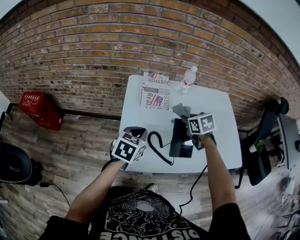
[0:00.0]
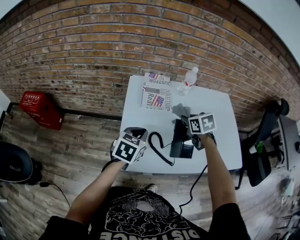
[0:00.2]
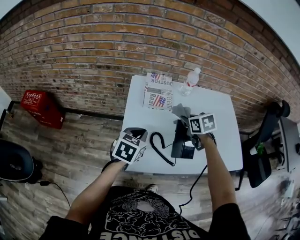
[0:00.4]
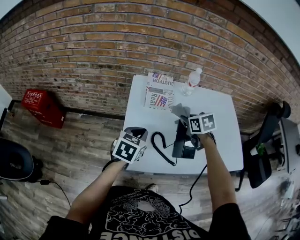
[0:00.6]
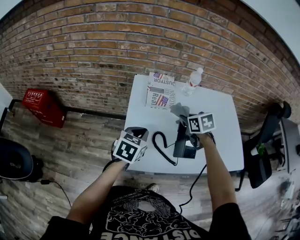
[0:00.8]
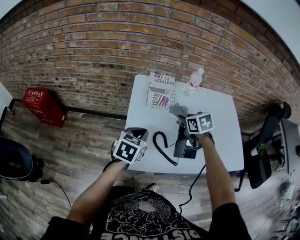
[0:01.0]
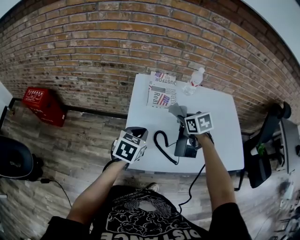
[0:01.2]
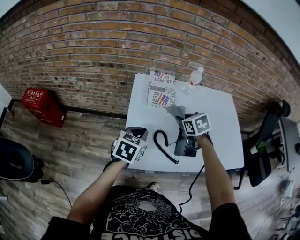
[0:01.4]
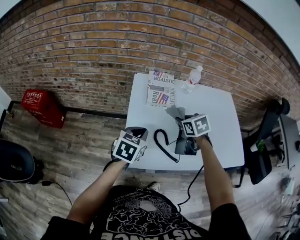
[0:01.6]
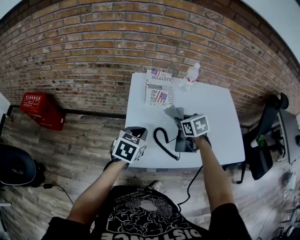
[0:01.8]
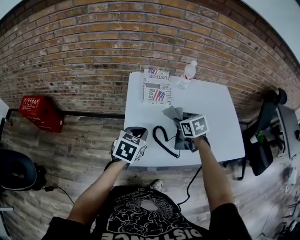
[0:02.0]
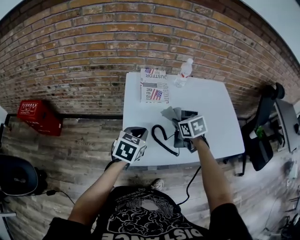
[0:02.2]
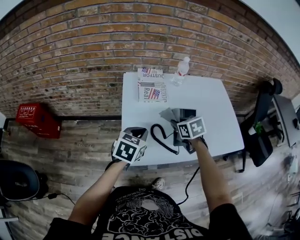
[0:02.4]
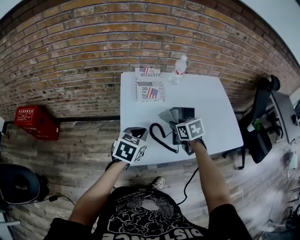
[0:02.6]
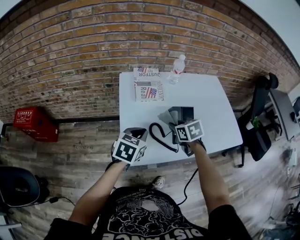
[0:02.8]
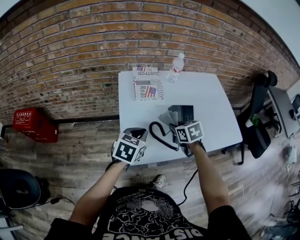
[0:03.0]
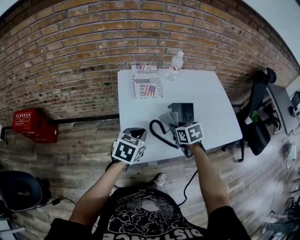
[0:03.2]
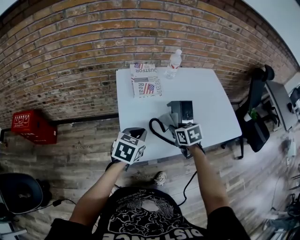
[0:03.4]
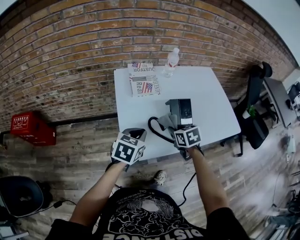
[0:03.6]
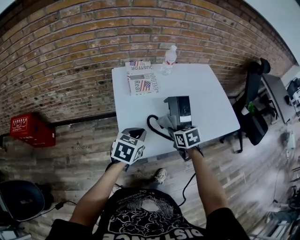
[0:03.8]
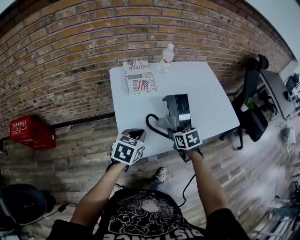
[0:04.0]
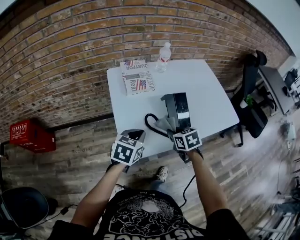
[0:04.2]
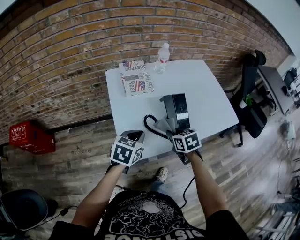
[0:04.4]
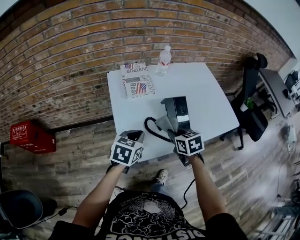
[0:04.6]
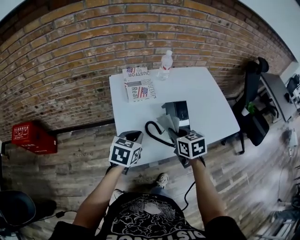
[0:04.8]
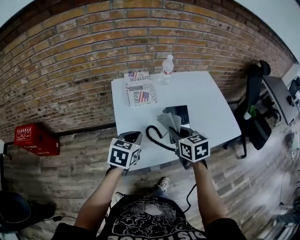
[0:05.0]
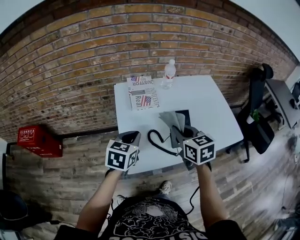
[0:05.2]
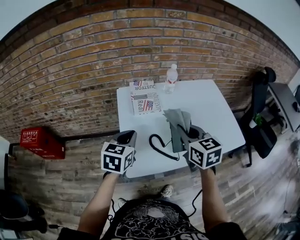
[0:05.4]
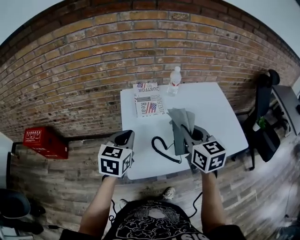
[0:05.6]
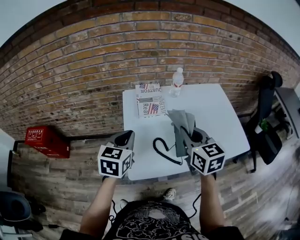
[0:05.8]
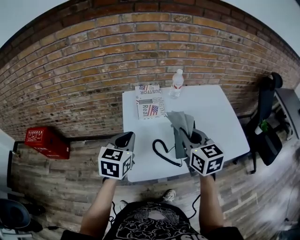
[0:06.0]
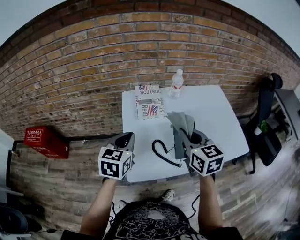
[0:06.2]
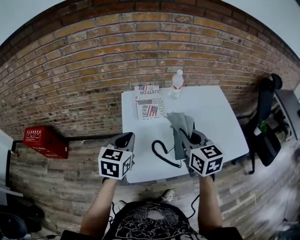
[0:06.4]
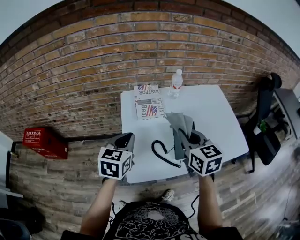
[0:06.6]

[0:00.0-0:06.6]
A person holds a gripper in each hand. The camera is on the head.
0:00.0 to 0:01.6: The right gripper moves to the left, some 5 cm.
0:01.6 to 0:03.2: The right gripper is displaced backward by some 10 cm.
0:03.2 to 0:05.0: The right gripper heads upward, covering roughly 10 cm.
0:05.0 to 0:06.6: Both grippers move upward, approximately 10 cm.

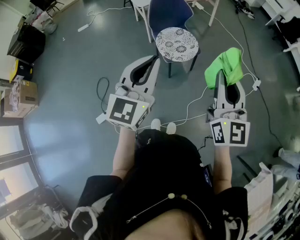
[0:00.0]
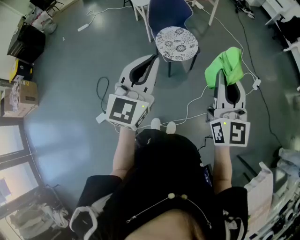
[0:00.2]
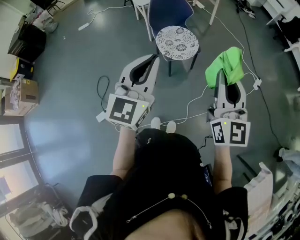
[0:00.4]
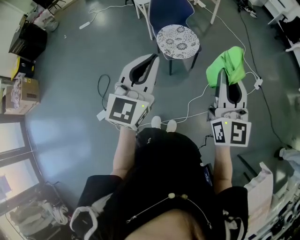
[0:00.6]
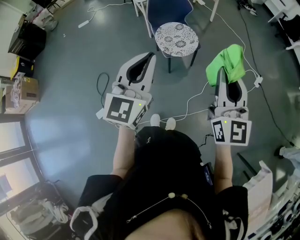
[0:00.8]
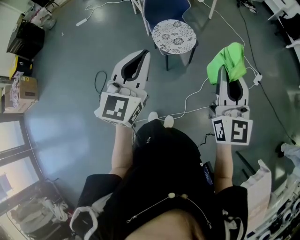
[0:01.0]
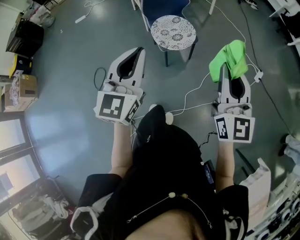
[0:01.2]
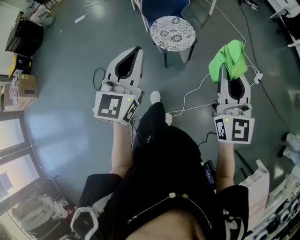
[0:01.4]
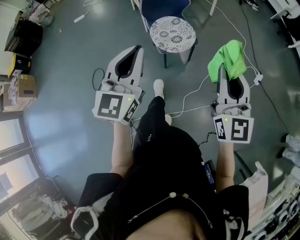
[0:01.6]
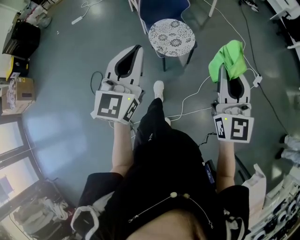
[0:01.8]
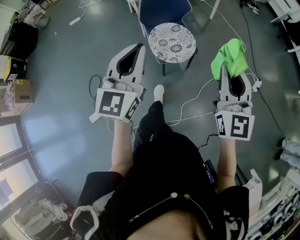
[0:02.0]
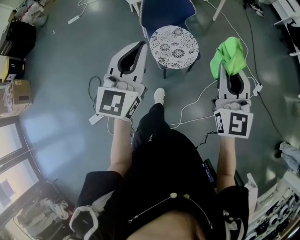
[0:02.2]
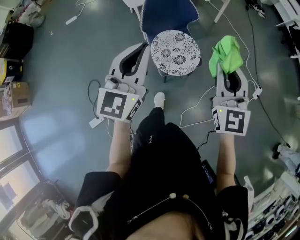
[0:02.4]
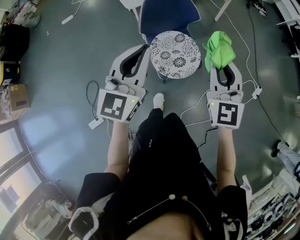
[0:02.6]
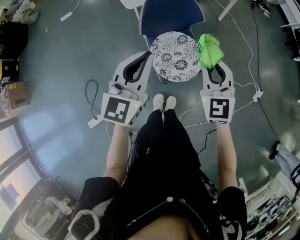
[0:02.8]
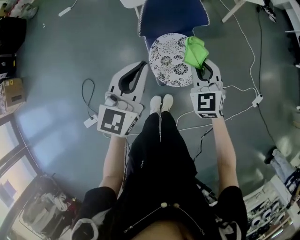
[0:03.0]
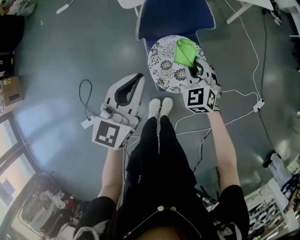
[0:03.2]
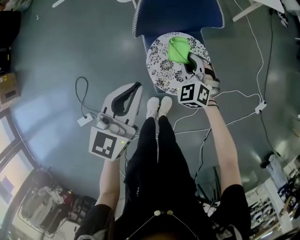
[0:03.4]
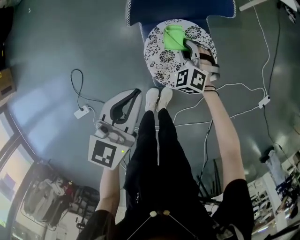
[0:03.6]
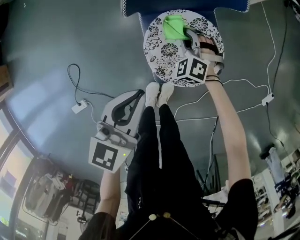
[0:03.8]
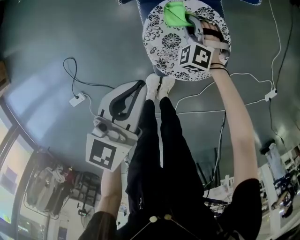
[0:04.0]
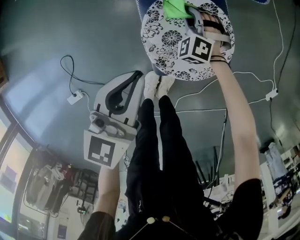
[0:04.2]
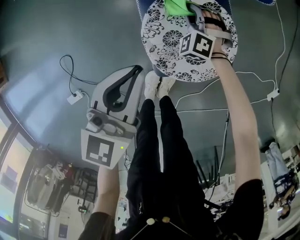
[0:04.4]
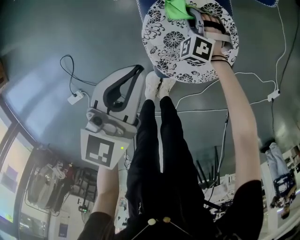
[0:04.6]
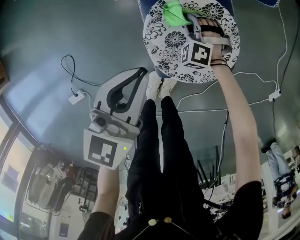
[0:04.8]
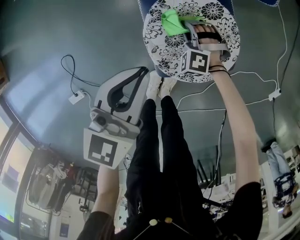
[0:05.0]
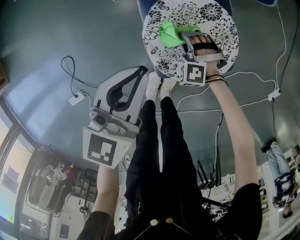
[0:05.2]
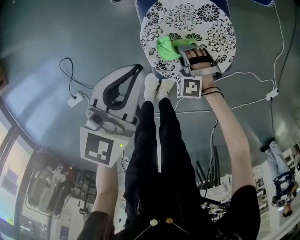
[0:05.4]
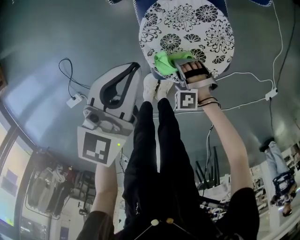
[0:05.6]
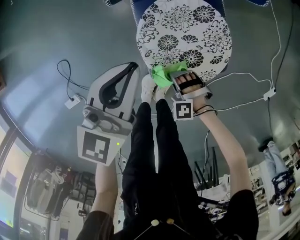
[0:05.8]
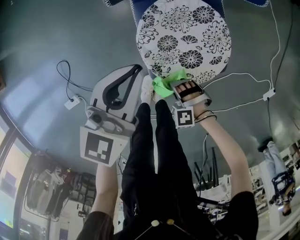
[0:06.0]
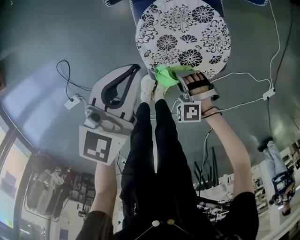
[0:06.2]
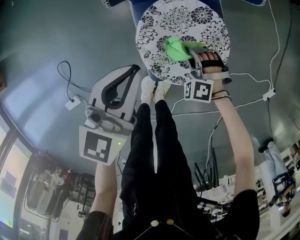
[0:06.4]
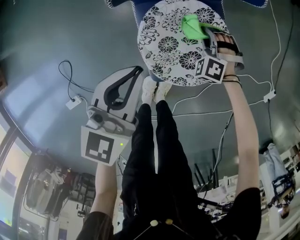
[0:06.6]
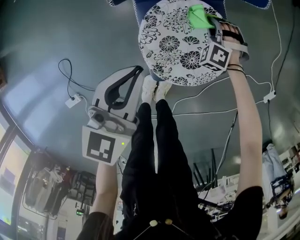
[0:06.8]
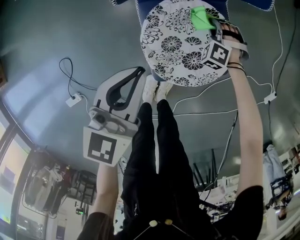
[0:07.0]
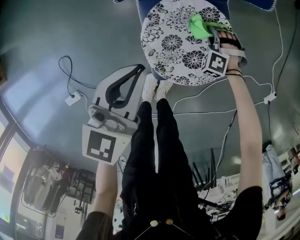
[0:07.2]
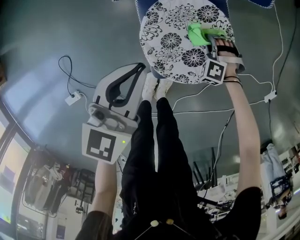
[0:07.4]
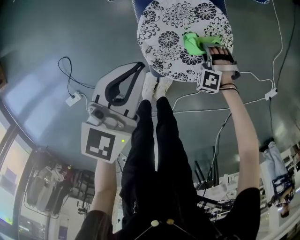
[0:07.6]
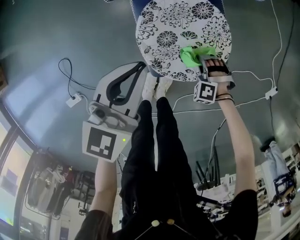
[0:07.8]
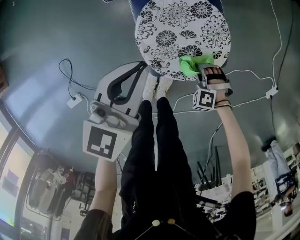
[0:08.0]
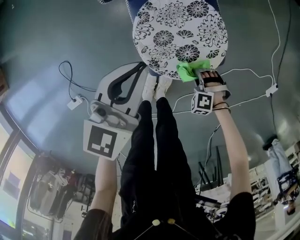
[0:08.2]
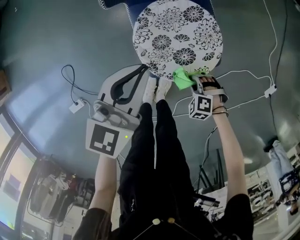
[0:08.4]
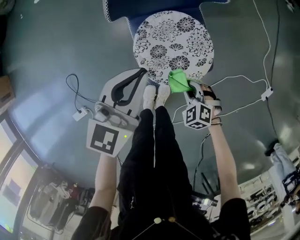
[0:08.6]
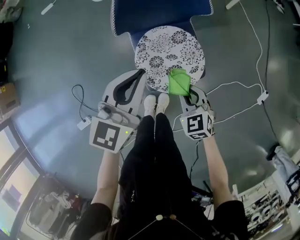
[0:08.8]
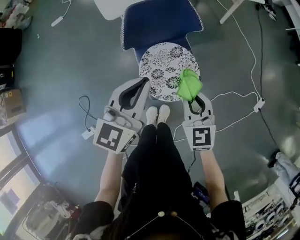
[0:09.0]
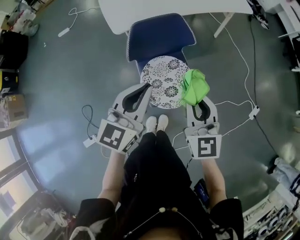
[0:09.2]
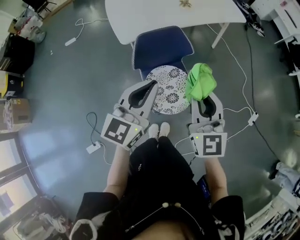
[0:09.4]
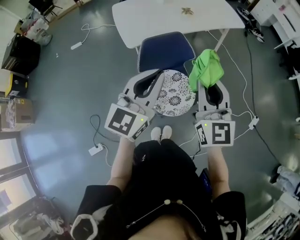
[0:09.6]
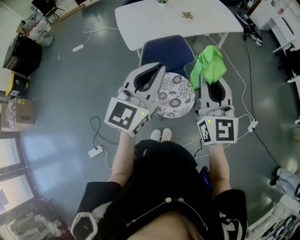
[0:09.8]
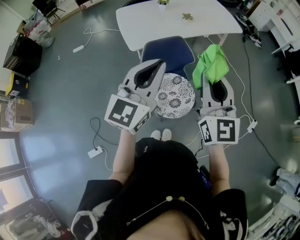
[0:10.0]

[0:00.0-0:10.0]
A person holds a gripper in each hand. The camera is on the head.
0:00.0 to 0:01.4: The right gripper goes some 5 cm to the right.
0:01.4 to 0:02.8: Both grippers travel together forward, approximately 40 cm. The right gripper swivels some 30 degrees.
0:02.8 to 0:04.2: The left gripper travels downward by some 30 cm; the right gripper heads downward and forward, covering some 50 cm, and rotates around the line of its fingers by roughly 40 degrees, counterclockwise from behind.
0:04.2 to 0:05.8: The right gripper is displaced backward by roughly 25 cm, and swivels approximately 30 degrees.
0:05.8 to 0:07.2: The right gripper ends up some 25 cm from where it was, and rotates some 20 degrees.
0:07.2 to 0:08.6: The left gripper is displaced upward by some 10 cm, while the right gripper ends up roughly 25 cm from where it was, and changes its angle by roughly 40 degrees.
0:08.6 to 0:10.0: The right gripper heads upward, covering approximately 70 cm, and points its fingers approximately 70 degrees further upward. The left gripper is displaced upward by about 40 cm, and swivels roughly 20 degrees.

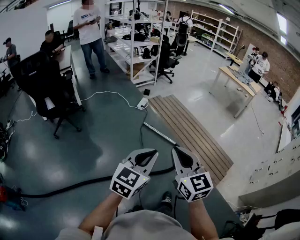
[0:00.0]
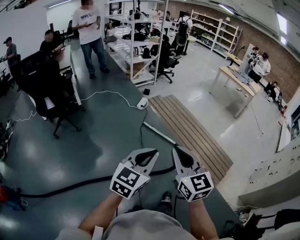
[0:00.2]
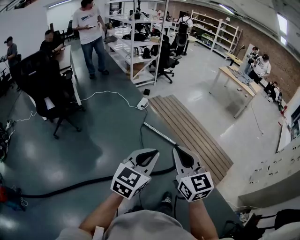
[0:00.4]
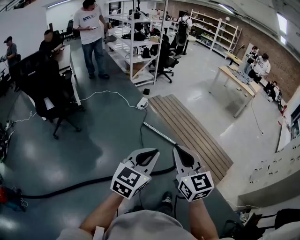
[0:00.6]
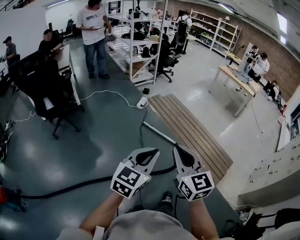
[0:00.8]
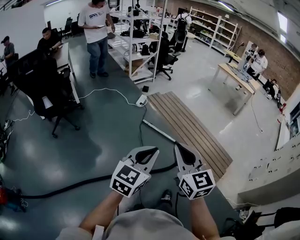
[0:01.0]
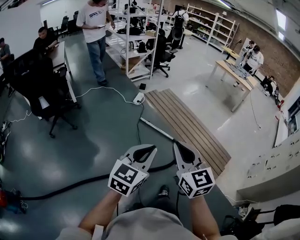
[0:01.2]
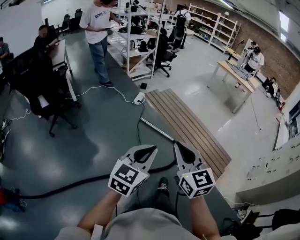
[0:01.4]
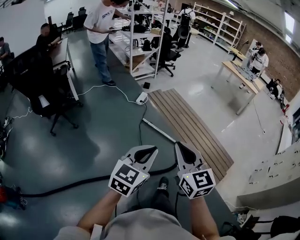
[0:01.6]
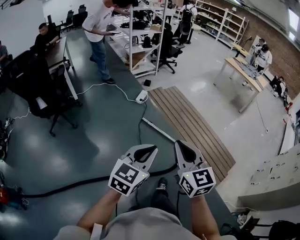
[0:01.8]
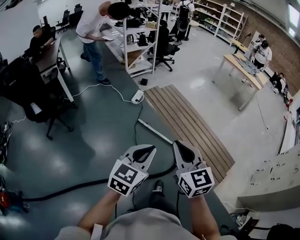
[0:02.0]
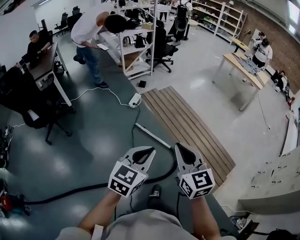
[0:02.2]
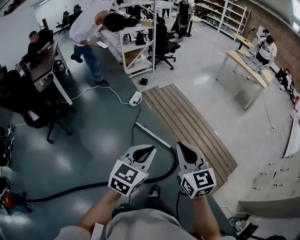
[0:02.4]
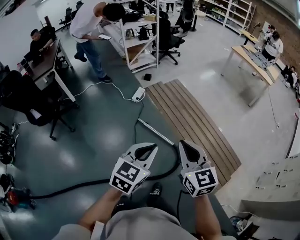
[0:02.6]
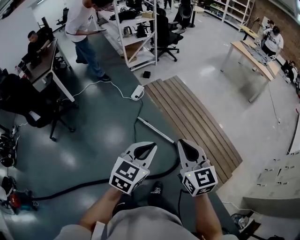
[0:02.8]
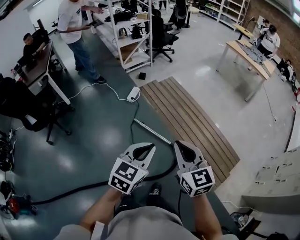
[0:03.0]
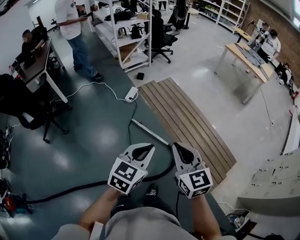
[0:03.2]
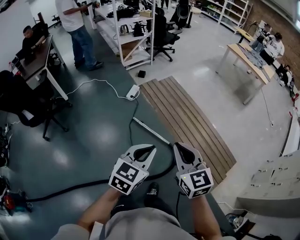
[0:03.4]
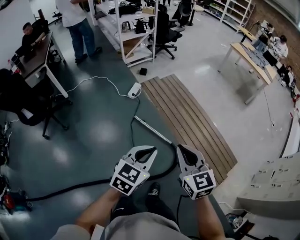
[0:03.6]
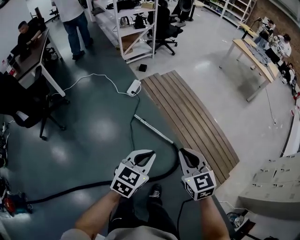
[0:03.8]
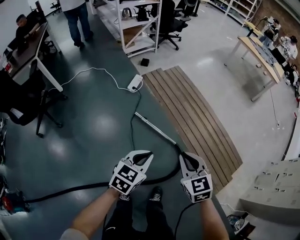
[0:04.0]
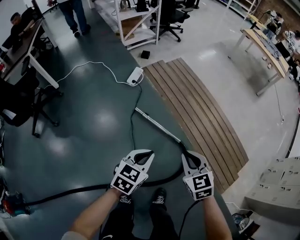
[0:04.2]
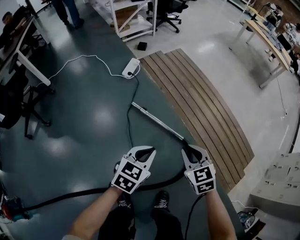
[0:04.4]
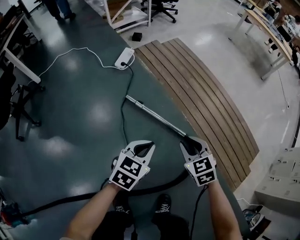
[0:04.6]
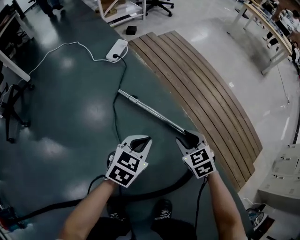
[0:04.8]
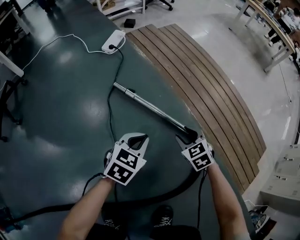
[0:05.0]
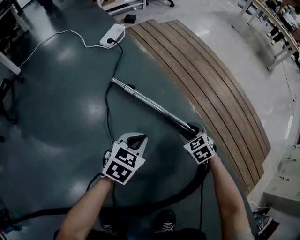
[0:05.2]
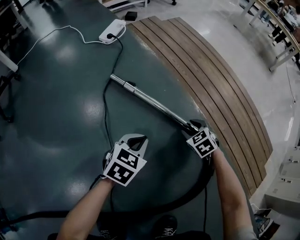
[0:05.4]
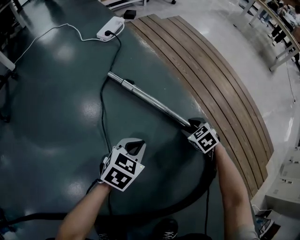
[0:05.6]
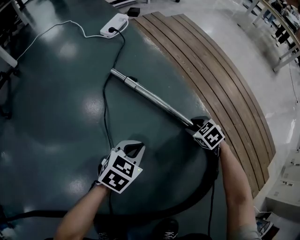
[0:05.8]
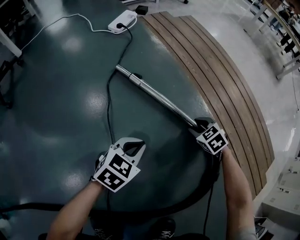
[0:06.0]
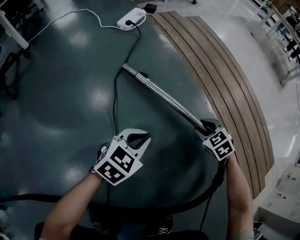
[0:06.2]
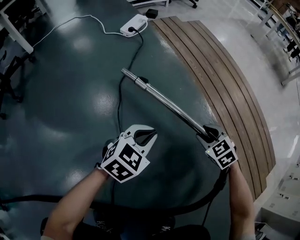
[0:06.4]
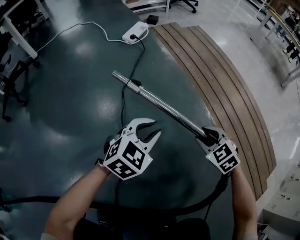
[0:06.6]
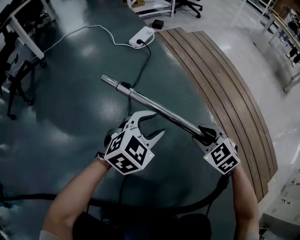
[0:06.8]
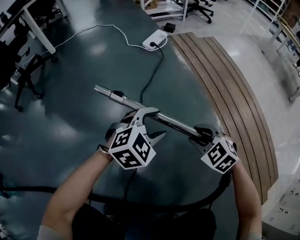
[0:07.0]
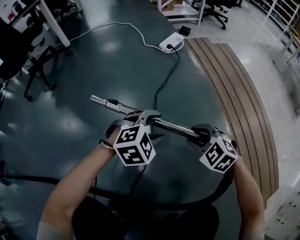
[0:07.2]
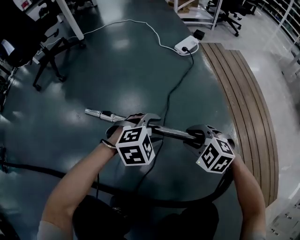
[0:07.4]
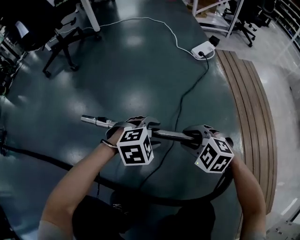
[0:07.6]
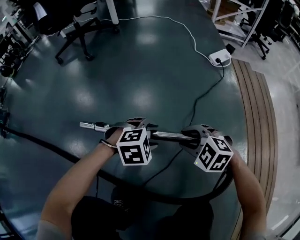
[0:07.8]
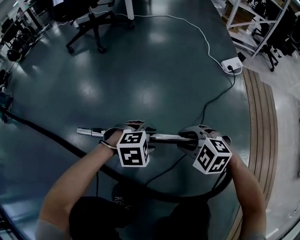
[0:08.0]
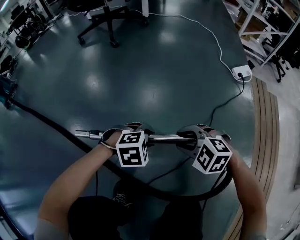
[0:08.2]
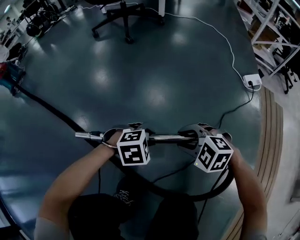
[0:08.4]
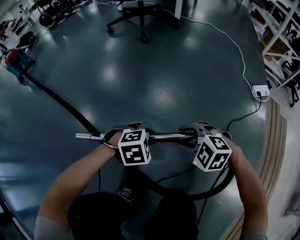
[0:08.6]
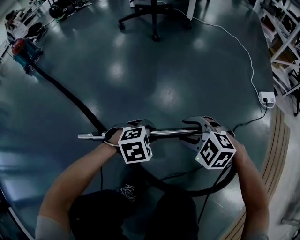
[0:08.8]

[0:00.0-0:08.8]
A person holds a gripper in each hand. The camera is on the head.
0:00.0 to 0:01.4: Both grippers move forward, approximately 5 cm.
0:01.4 to 0:03.0: Both grippers move forward and to the right, about 35 cm.
0:03.0 to 0:04.4: Both grippers travel together downward, roughly 40 cm. The right gripper swivels roughly 30 degrees.
0:04.4 to 0:05.8: The two grippers go about 50 cm downward. The right gripper rotates about 30 degrees.
0:05.8 to 0:07.4: The right gripper moves about 35 cm, and rotates around the line of its fingers by some 50 degrees, counterclockwise from behind; the left gripper moves upward, approximately 15 cm, rotates some 30 degrees, and opens its fingers.
0:07.4 to 0:08.8: The right gripper moves approximately 35 cm, and rotates approximately 50 degrees. The left gripper shifts by approximately 35 cm, and rotates some 40 degrees.
